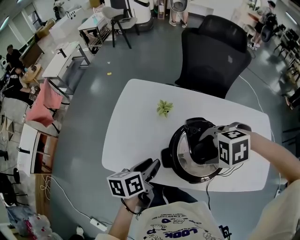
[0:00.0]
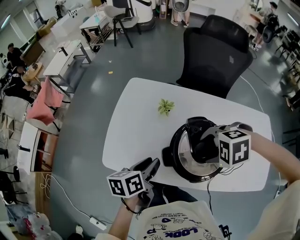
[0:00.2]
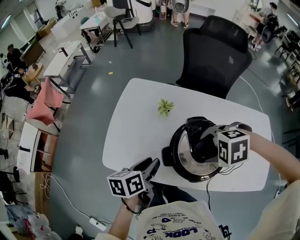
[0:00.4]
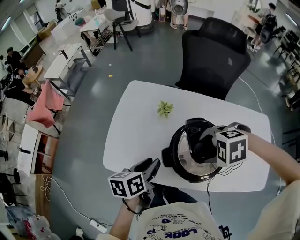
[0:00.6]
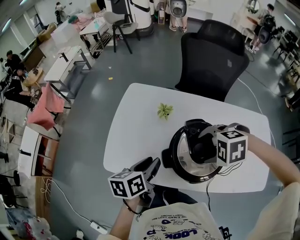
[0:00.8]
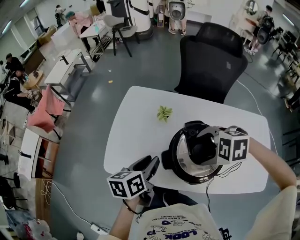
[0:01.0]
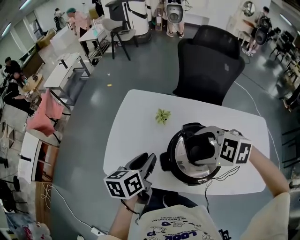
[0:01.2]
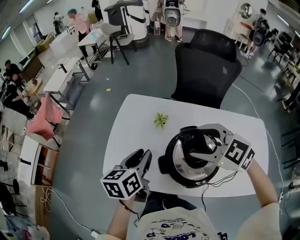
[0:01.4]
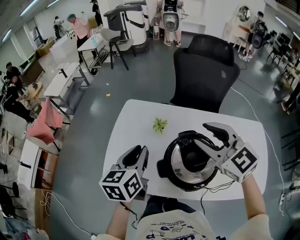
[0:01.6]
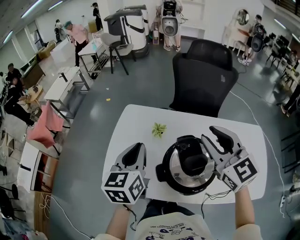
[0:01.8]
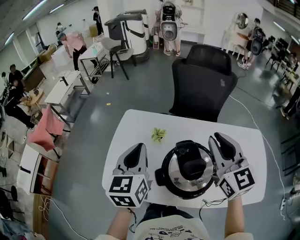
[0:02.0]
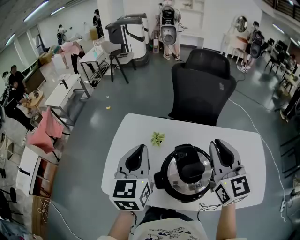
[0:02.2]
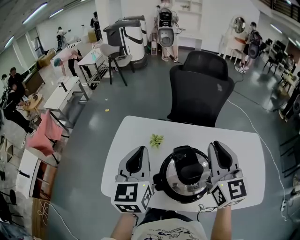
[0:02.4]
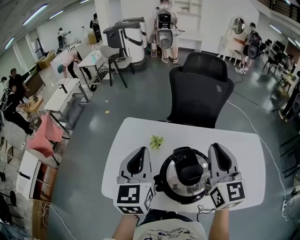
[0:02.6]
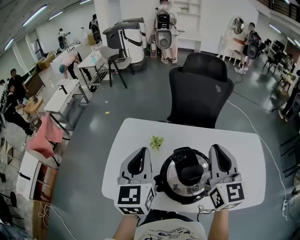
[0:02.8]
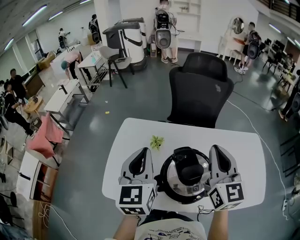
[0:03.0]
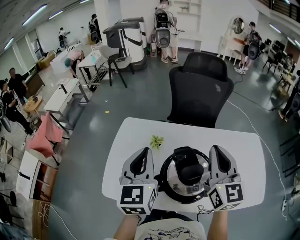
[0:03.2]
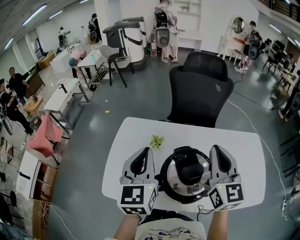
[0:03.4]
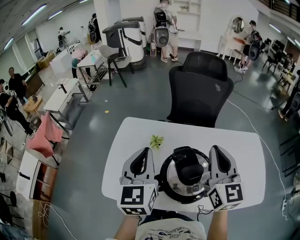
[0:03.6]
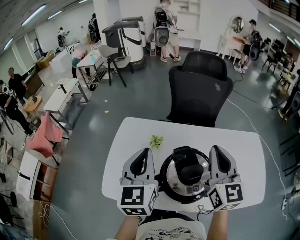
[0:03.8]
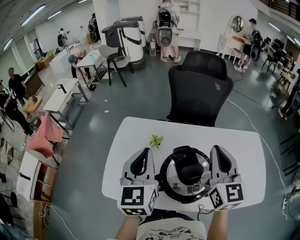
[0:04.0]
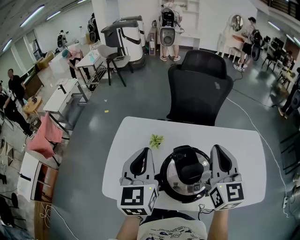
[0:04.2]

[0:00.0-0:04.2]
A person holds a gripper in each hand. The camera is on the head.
0:00.0 to 0:01.4: The two grippers go approximately 10 cm upward. The right gripper tilts its fingers about 40 degrees upward, while the left gripper turns by roughly 20 degrees.
0:01.4 to 0:02.8: The left gripper shifts some 15 cm upward, rotates roughly 40 degrees, and closes its fingers, while the right gripper shifts about 15 cm upward and to the right, tilts its fingers some 40 degrees upward, and closes.
0:02.8 to 0:04.2: The grippers stay close to where they were, moving slightly.

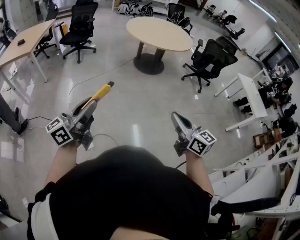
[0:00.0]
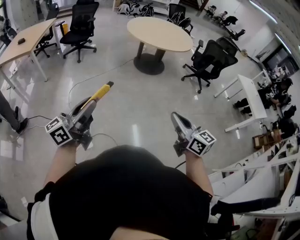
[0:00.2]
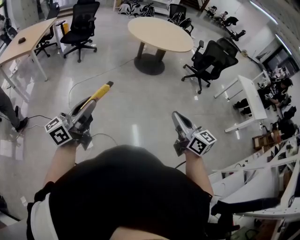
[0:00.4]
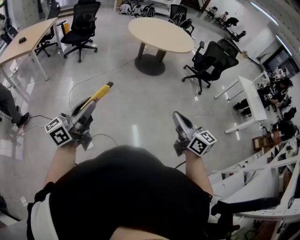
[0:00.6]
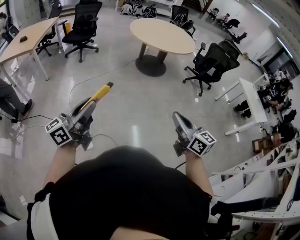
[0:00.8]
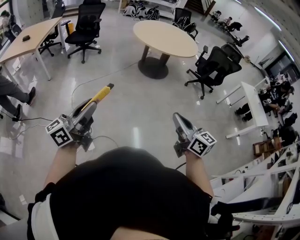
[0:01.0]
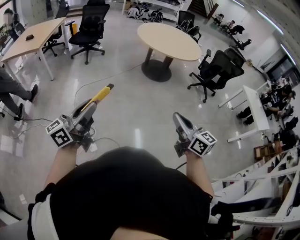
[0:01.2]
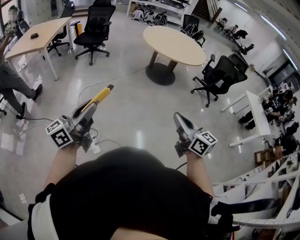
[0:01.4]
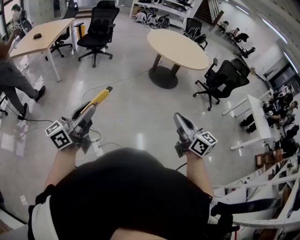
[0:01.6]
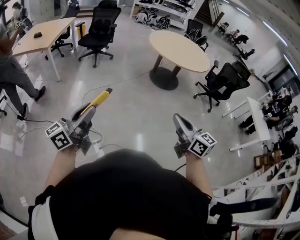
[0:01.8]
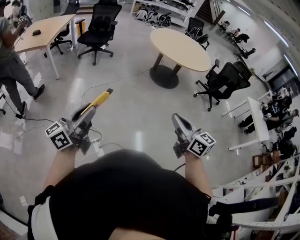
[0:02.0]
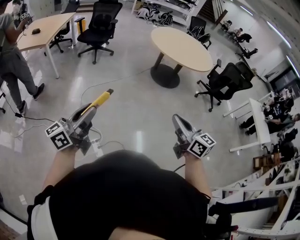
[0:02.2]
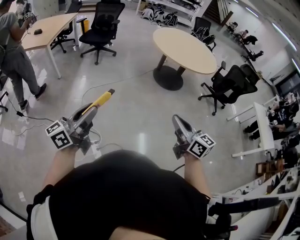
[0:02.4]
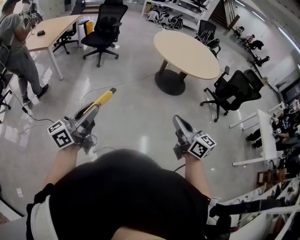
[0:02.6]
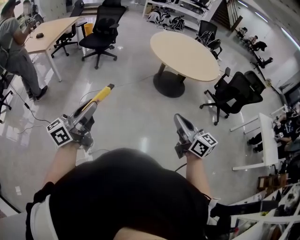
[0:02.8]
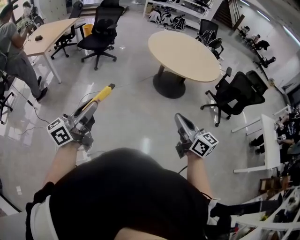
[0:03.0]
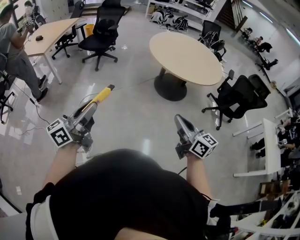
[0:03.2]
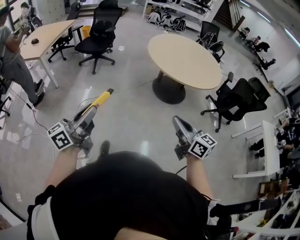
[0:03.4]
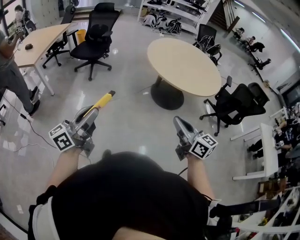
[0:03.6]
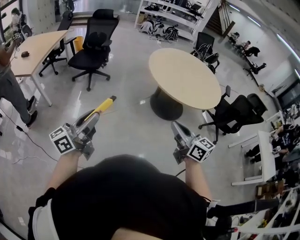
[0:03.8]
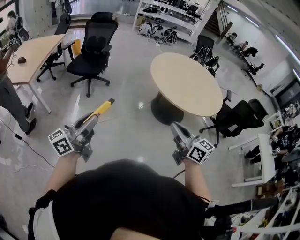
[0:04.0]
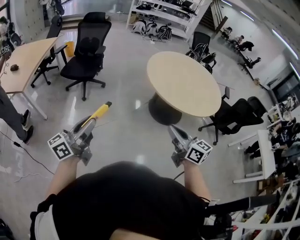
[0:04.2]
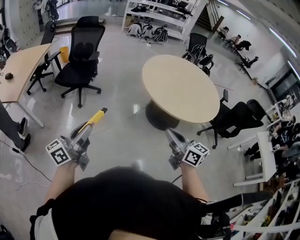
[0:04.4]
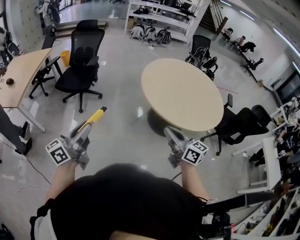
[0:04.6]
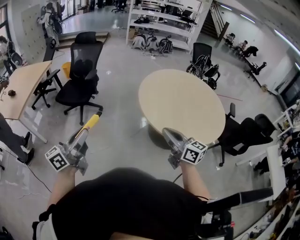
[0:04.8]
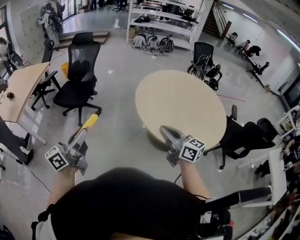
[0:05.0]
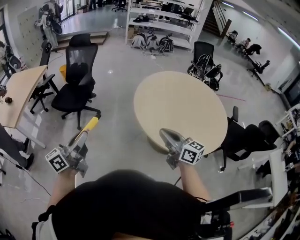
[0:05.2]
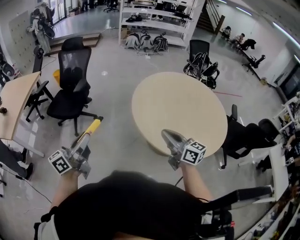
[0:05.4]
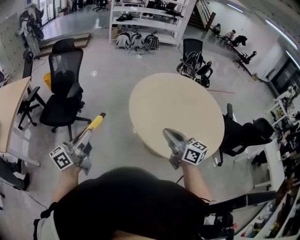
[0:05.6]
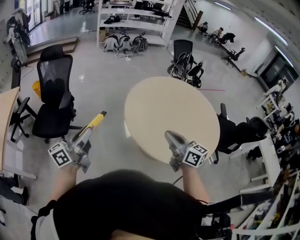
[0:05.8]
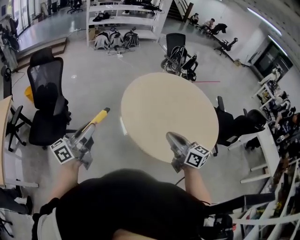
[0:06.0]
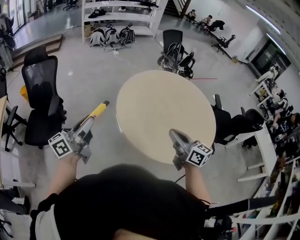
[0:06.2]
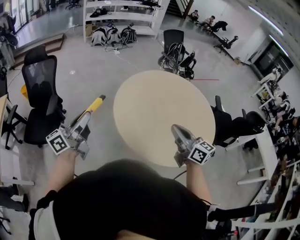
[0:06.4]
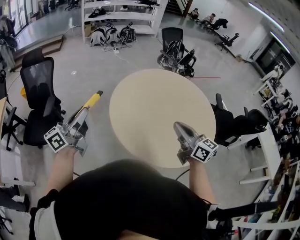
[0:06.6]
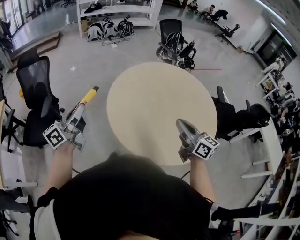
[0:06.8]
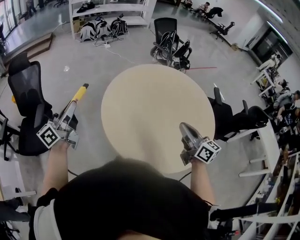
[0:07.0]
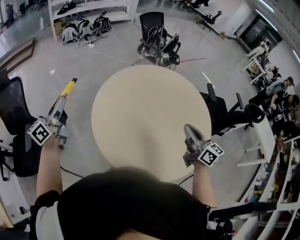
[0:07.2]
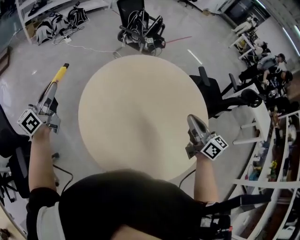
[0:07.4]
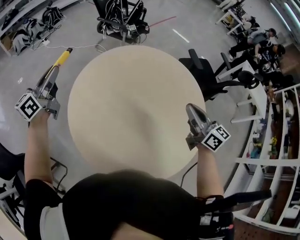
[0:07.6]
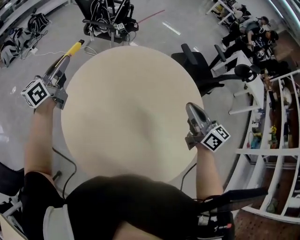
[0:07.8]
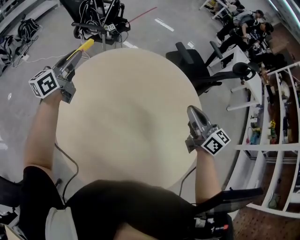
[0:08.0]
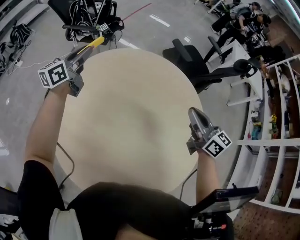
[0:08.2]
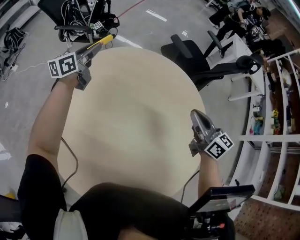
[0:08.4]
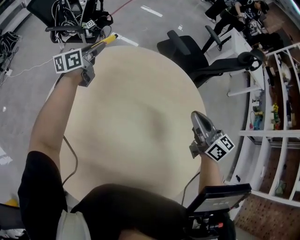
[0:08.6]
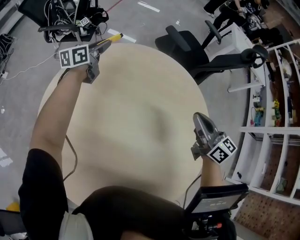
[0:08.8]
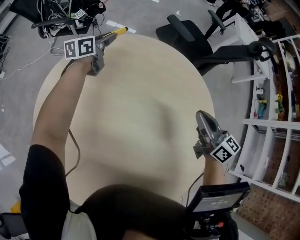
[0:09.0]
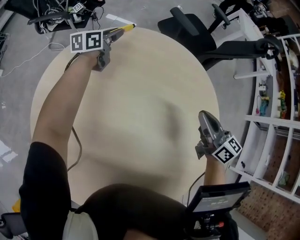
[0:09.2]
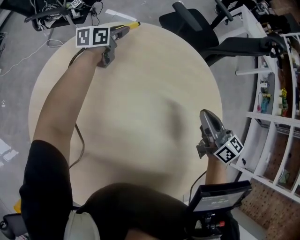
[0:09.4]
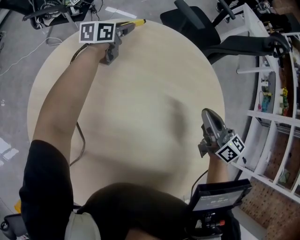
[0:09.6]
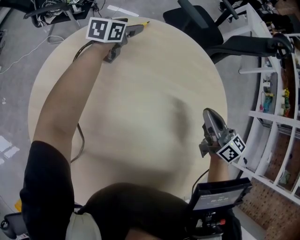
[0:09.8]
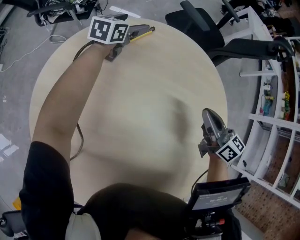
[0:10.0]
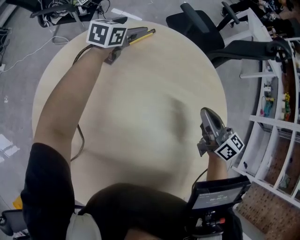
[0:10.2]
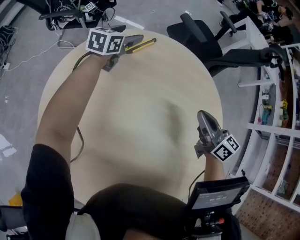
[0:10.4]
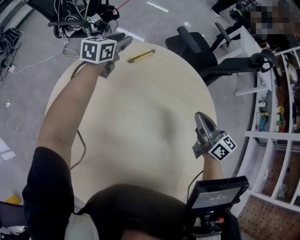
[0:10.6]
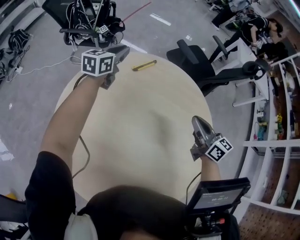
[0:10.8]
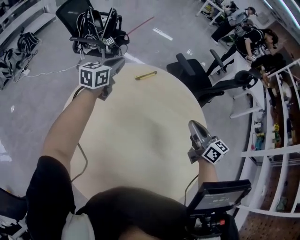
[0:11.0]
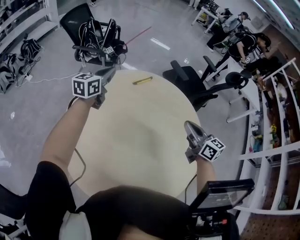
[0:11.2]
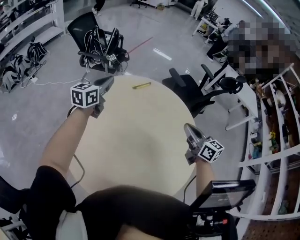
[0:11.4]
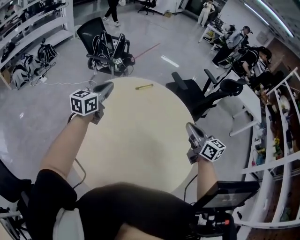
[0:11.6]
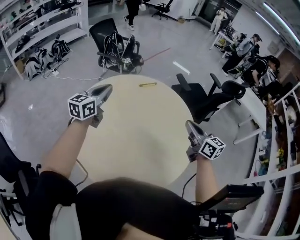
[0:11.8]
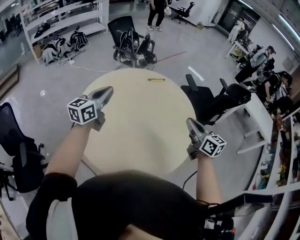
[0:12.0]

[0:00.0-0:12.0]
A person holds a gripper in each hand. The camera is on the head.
0:00.0 to 0:01.6: The right gripper moves to the left and forward, approximately 15 cm, while the left gripper moves to the left, some 15 cm.
0:01.6 to 0:03.0: The left gripper heads to the right and forward, covering some 30 cm, while the right gripper is displaced forward and to the right by some 35 cm.
0:03.0 to 0:04.4: Both grippers are carried forward, some 50 cm.
0:04.4 to 0:06.0: The pair of grippers is taken forward, about 50 cm.
0:06.0 to 0:07.6: Both grippers are carried some 60 cm. The right gripper turns by roughly 40 degrees. Meanwhile the left gripper turns by some 20 degrees.
0:07.6 to 0:09.0: The right gripper ends up about 25 cm from where it was, and swivels approximately 20 degrees, while the left gripper changes place by about 70 cm, and rotates about 40 degrees.
0:09.0 to 0:10.4: The left gripper turns by about 20 degrees, and opens up.
0:10.4 to 0:12.0: The left gripper moves approximately 60 cm, changes its angle by some 40 degrees, and closes up. The right gripper moves upward, about 25 cm, and swivels some 30 degrees.

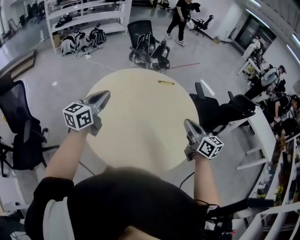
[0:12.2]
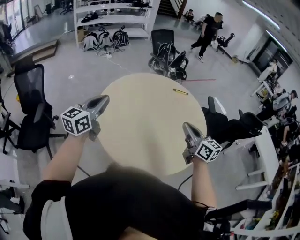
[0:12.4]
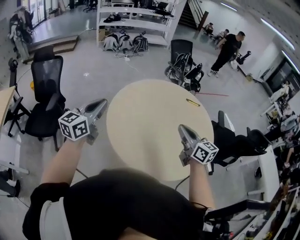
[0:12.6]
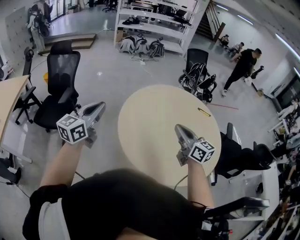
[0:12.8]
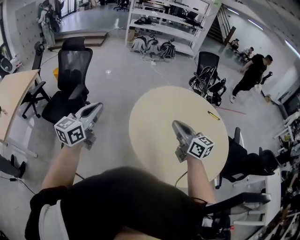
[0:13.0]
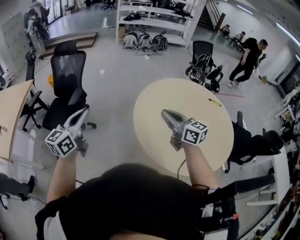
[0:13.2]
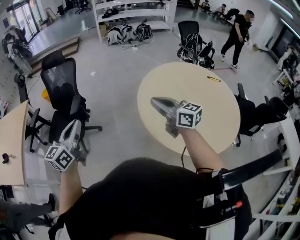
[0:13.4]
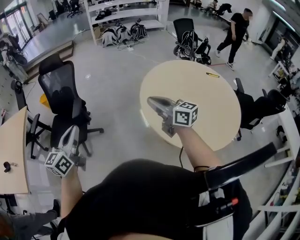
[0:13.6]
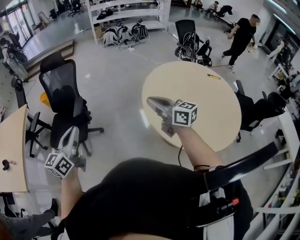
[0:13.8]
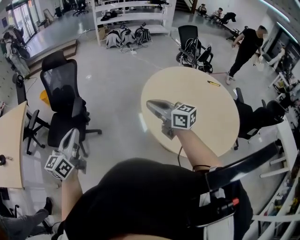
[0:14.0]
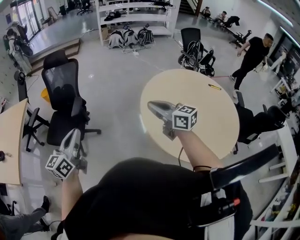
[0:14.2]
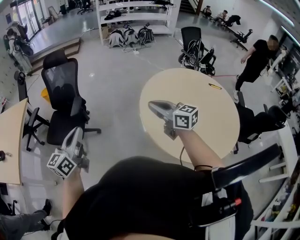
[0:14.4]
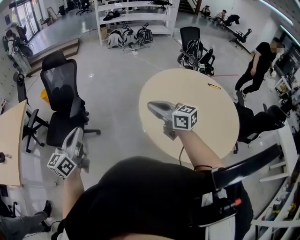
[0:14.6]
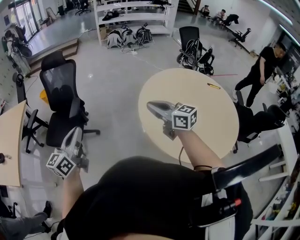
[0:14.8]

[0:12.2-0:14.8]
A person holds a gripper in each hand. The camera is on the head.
0:12.2 to 0:13.4: The pair of grippers is taken about 50 cm. The right gripper turns by roughly 40 degrees; the left gripper rotates some 30 degrees.
0:13.4 to 0:14.8: The grippers make only small movements.

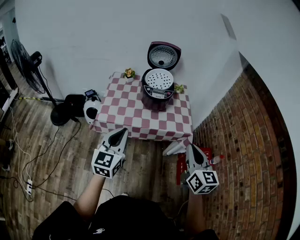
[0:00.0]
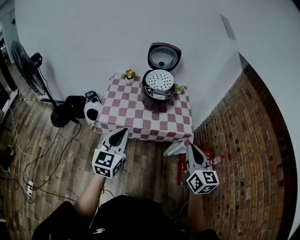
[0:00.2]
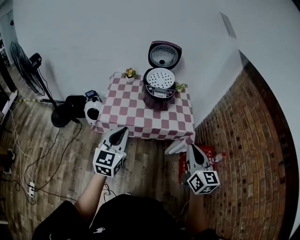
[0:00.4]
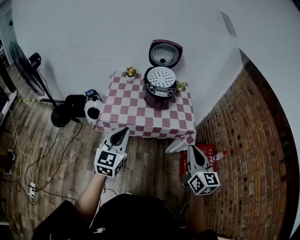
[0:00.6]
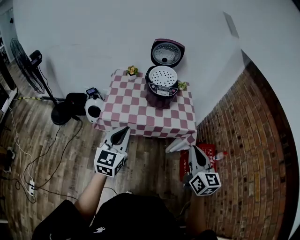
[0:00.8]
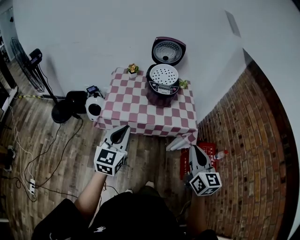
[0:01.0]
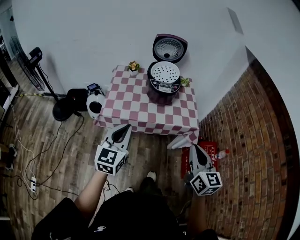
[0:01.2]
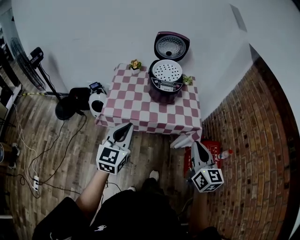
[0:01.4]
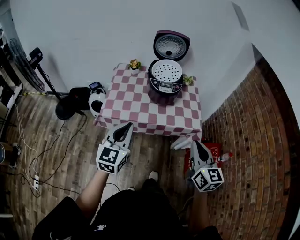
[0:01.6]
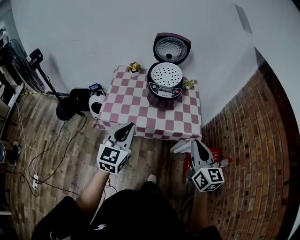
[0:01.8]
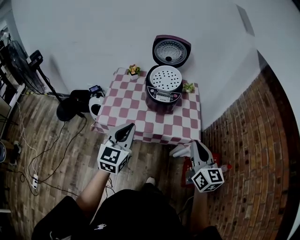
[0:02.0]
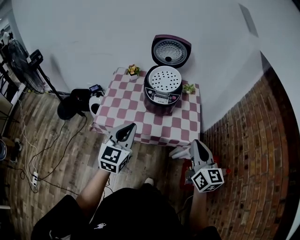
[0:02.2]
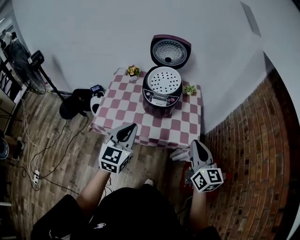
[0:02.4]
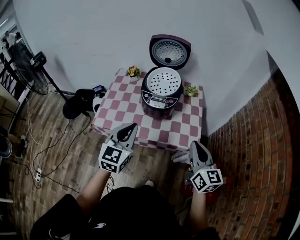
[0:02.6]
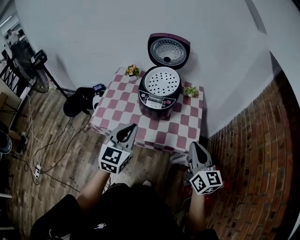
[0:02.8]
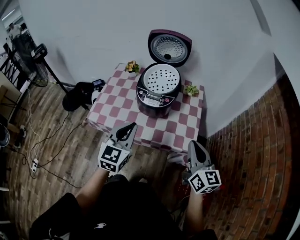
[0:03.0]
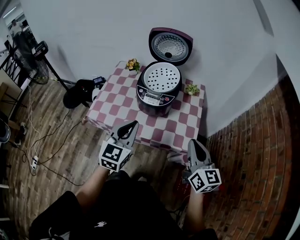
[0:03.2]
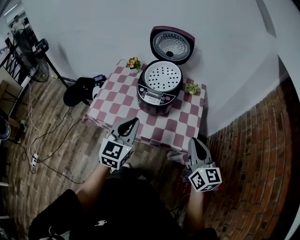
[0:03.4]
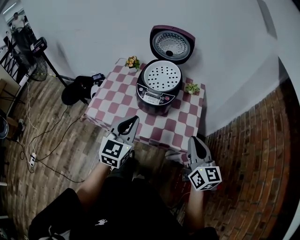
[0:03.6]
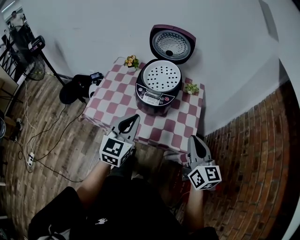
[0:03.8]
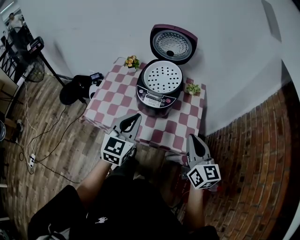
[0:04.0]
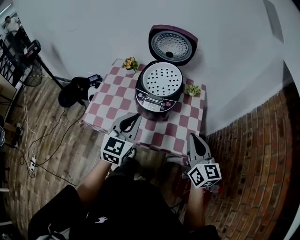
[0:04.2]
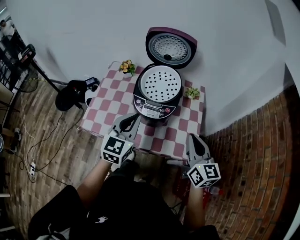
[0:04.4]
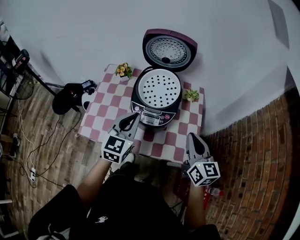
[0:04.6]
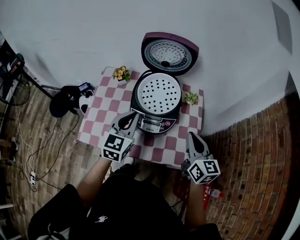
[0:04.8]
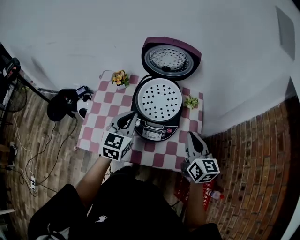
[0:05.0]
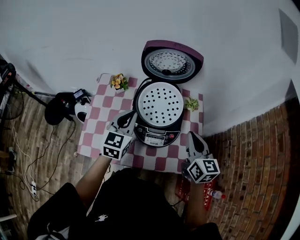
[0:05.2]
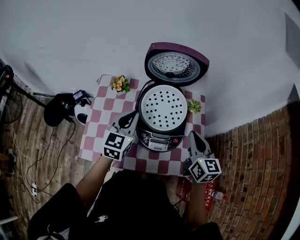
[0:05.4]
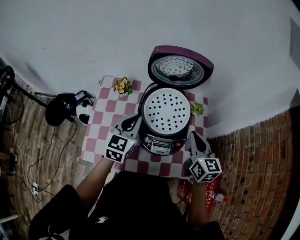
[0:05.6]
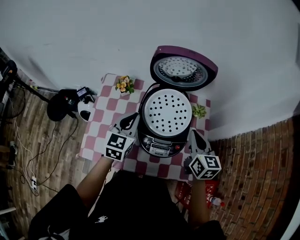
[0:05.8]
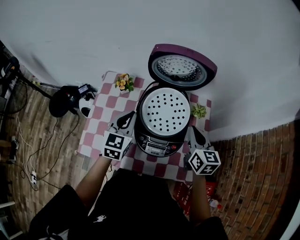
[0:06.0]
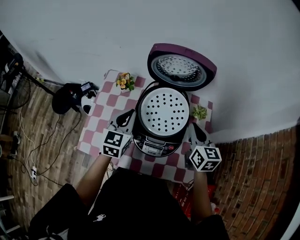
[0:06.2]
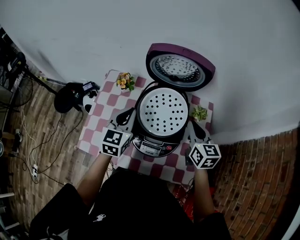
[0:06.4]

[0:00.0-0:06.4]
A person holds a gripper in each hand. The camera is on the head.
0:00.0 to 0:01.6: The right gripper changes place by about 5 cm.
0:01.6 to 0:03.2: The left gripper travels to the right and forward by roughly 20 cm. The right gripper goes about 25 cm forward and to the right.
0:03.2 to 0:04.8: Both grippers travel together forward, roughly 20 cm.
0:04.8 to 0:06.4: Both grippers travel together forward, some 15 cm.
